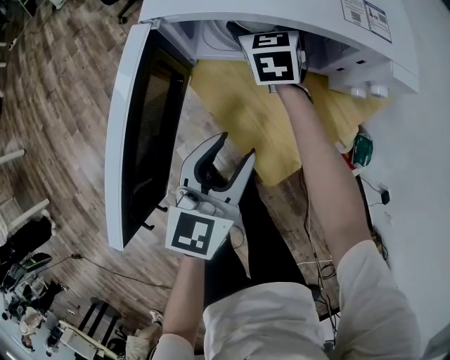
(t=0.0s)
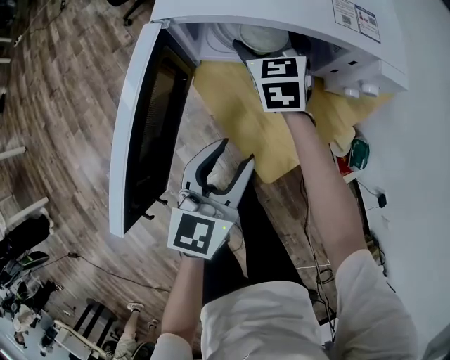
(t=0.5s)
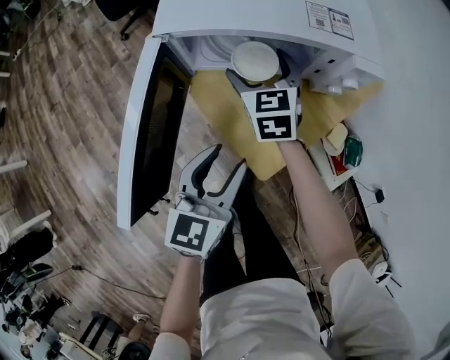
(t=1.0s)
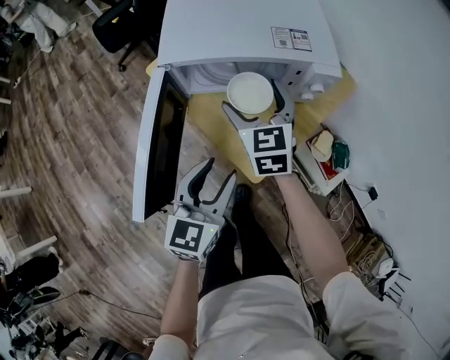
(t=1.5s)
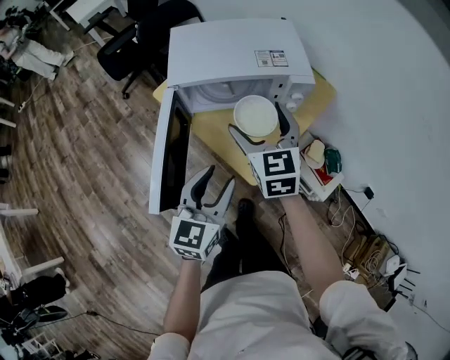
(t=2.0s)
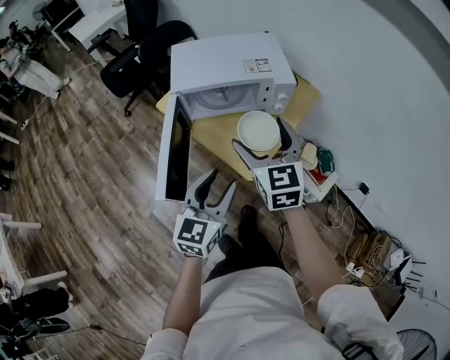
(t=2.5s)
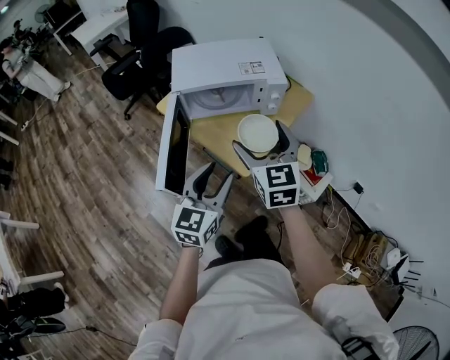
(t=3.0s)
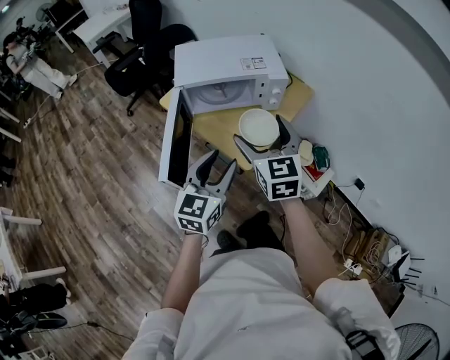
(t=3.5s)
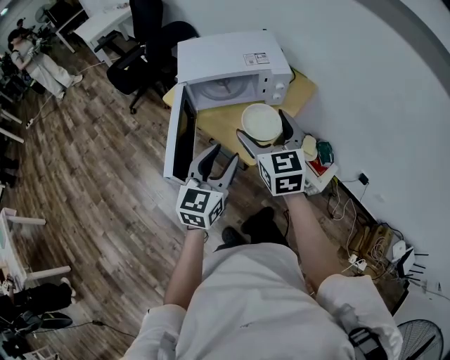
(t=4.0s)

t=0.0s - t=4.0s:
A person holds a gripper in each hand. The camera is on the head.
t=0.0s - t=2.0s: The right gripper heads backward and upward, covering about 35 cm. Meanwhile the left gripper shifts about 20 cm upward and backward.
t=2.0s - t=4.0s: The right gripper goes approximately 15 cm backward and upward, while the left gripper heads backward and upward, covering about 10 cm.

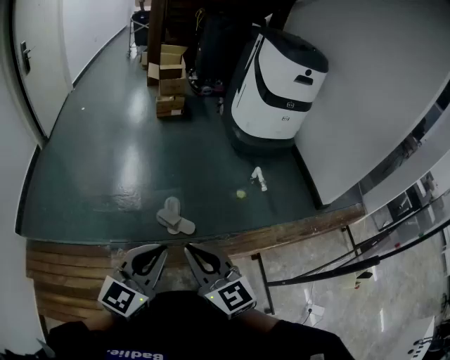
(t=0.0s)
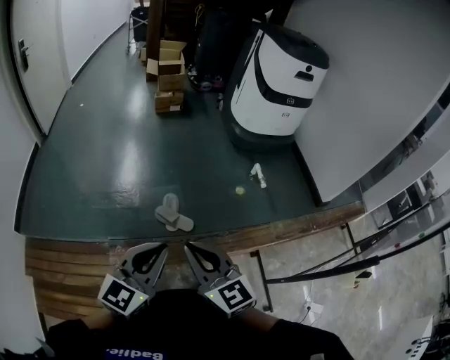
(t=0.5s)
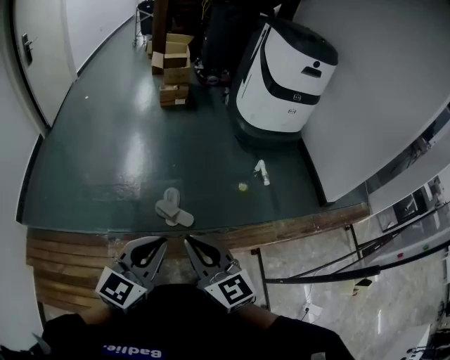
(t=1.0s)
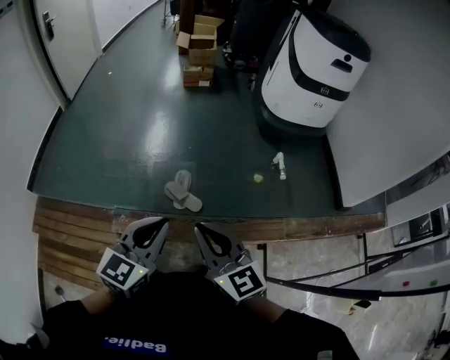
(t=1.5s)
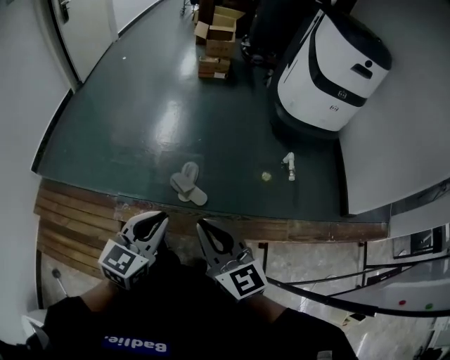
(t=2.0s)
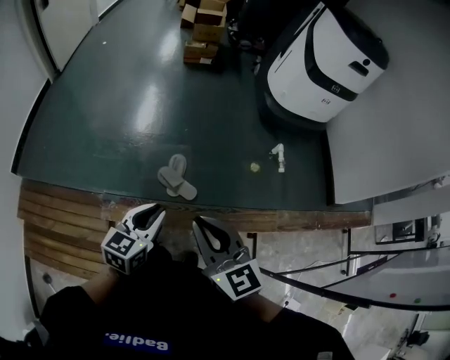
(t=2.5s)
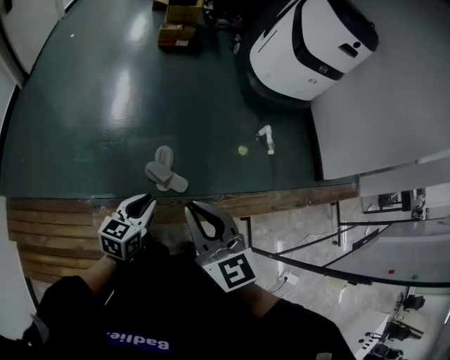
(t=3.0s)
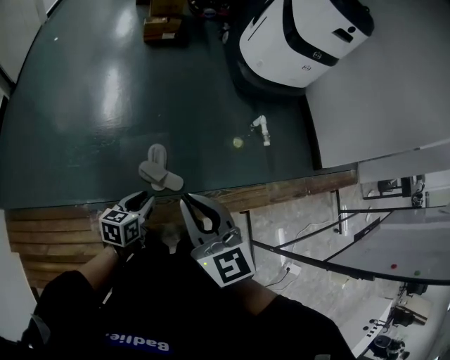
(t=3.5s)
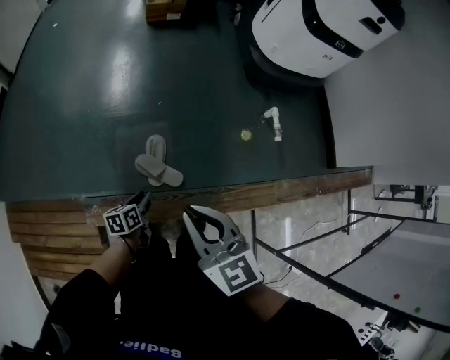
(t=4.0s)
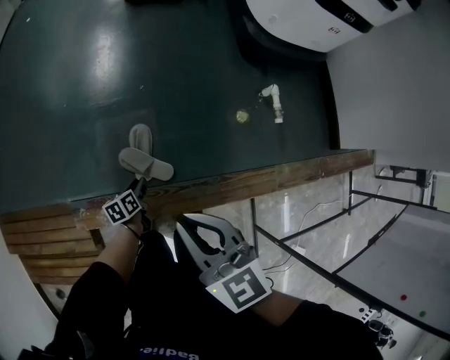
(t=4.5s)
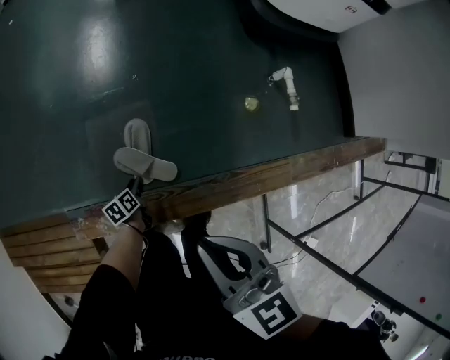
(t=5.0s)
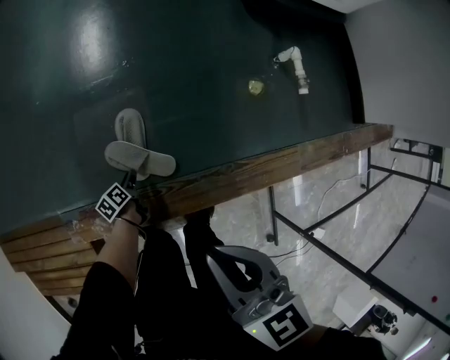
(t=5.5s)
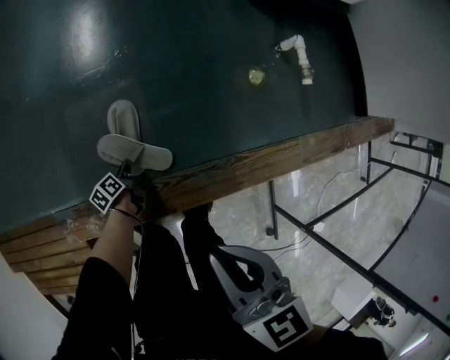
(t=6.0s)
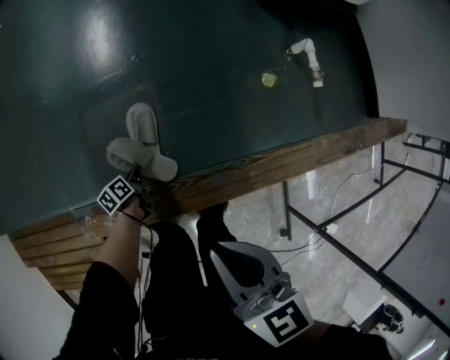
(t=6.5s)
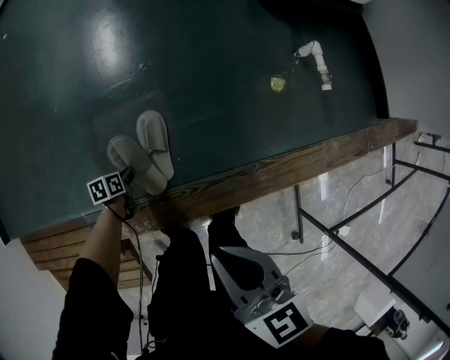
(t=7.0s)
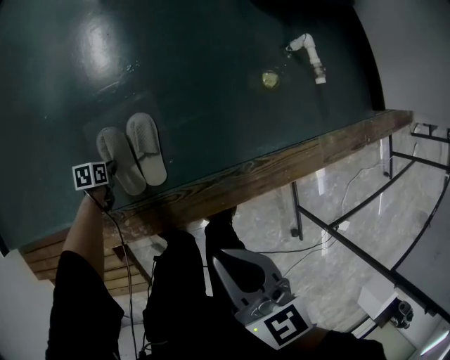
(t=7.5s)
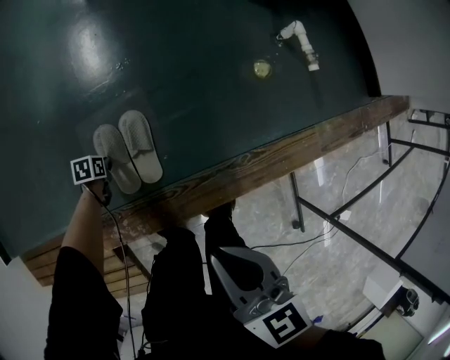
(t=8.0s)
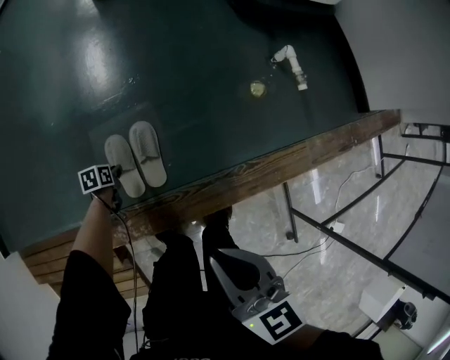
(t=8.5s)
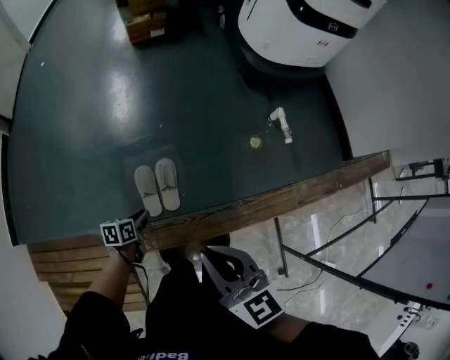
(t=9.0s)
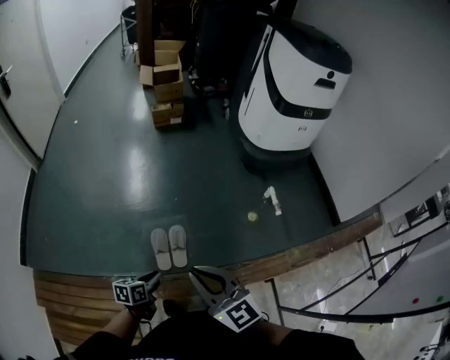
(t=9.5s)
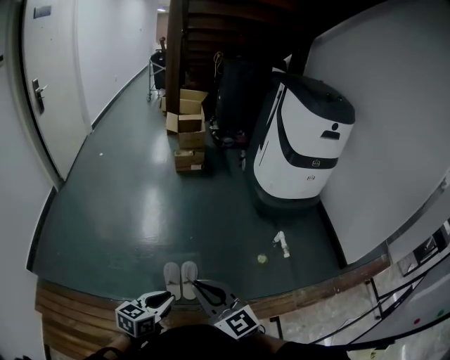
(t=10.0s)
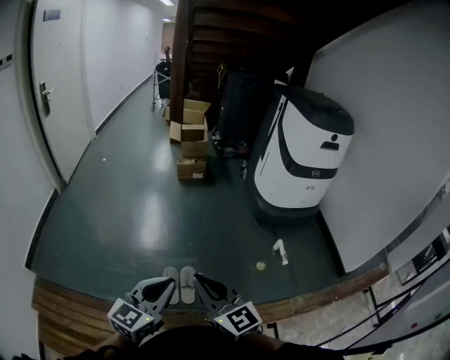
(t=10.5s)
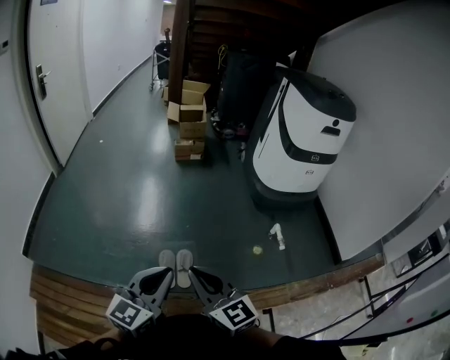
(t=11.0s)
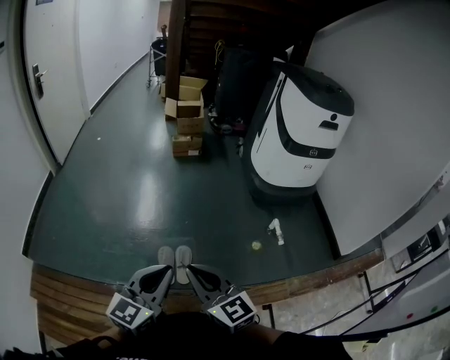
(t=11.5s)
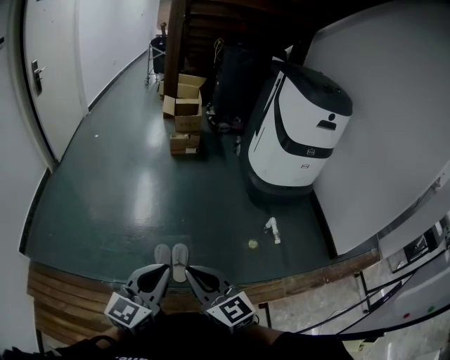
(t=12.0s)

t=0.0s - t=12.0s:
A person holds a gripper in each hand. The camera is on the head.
t=0.0s - t=2.0s: The left gripper shifts about 15 cm downward, to the right and forward, and turns by about 20 degrees. Meanwhile the right gripper shifts about 10 cm to the right and forward.
t=2.0s - t=4.0s: The right gripper shifts approximately 25 cm forward and downward; the left gripper heads downward and forward, covering roughly 40 cm, rotates around the line of its fingers by some 40 degrees, counterclockwise from behind, and opens its fingers.
t=4.0s - t=6.0s: The left gripper travels downward by about 35 cm, and rotates roughly 30 degrees; the right gripper goes roughly 20 cm downward, and swivels roughly 20 degrees.
t=6.0s - t=8.0s: The left gripper moves to the left and forward, roughly 10 cm, and rotates around the line of its fingers by about 50 degrees, clockwise from behind.
t=8.0s - t=10.0s: The right gripper travels upward by roughly 40 cm, and changes its angle by about 50 degrees. Meanwhile the left gripper goes roughly 70 cm upward, and tips its fingers upward by some 50 degrees.
t=10.0s - t=12.0s: The left gripper goes some 15 cm upward, and turns by approximately 30 degrees.

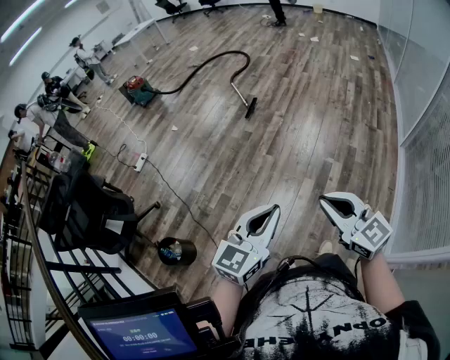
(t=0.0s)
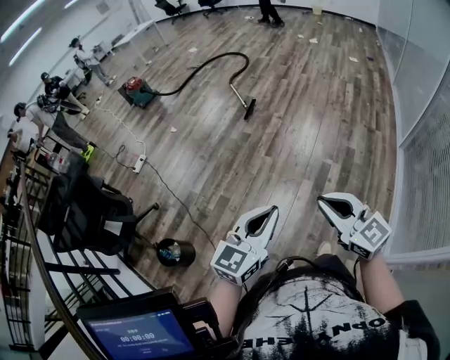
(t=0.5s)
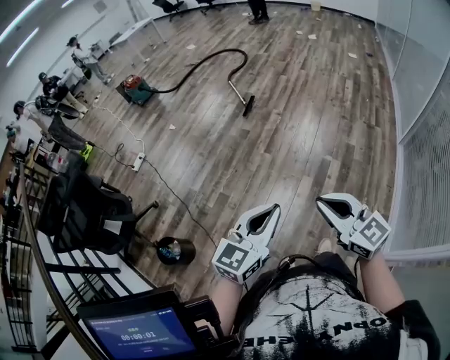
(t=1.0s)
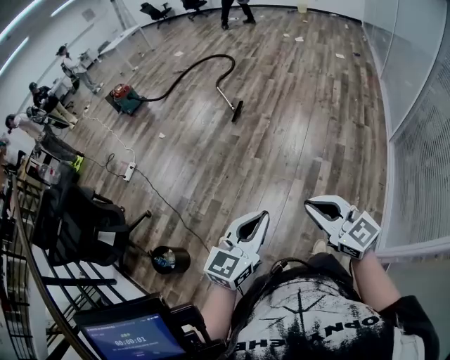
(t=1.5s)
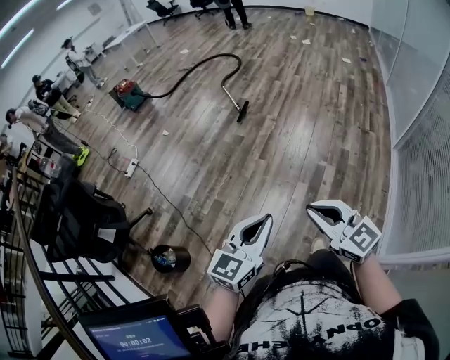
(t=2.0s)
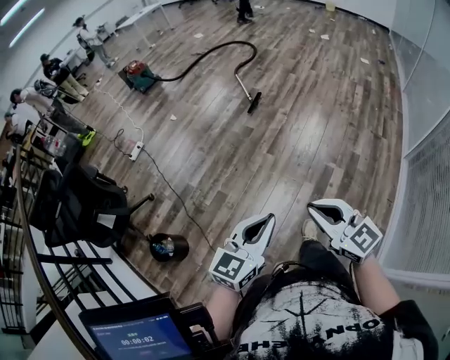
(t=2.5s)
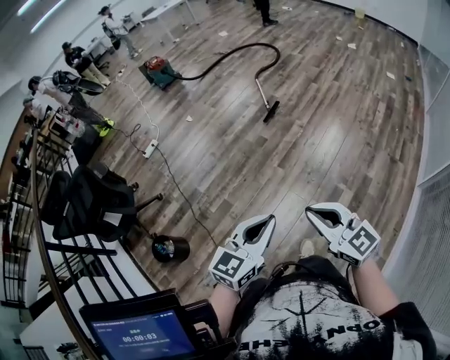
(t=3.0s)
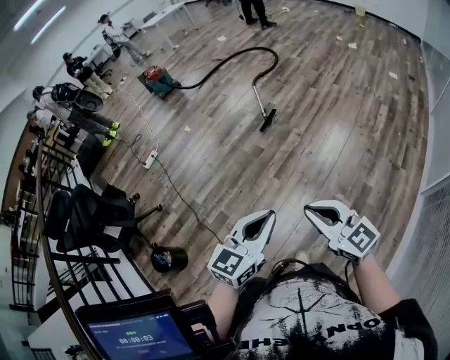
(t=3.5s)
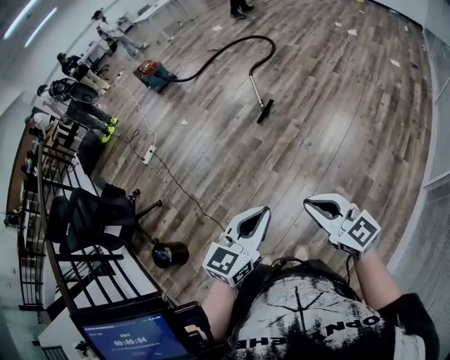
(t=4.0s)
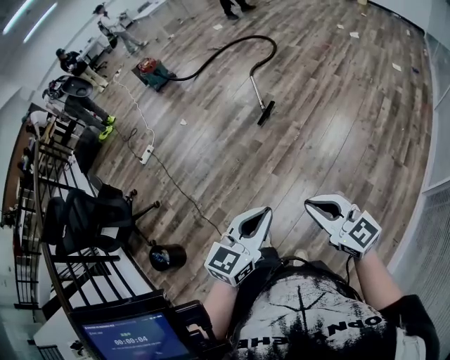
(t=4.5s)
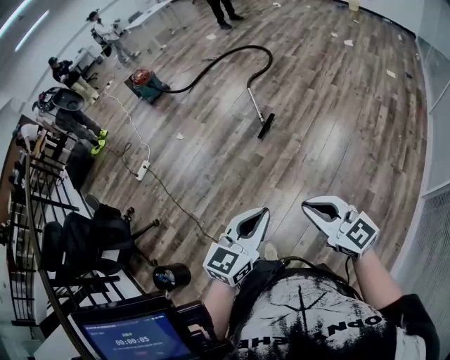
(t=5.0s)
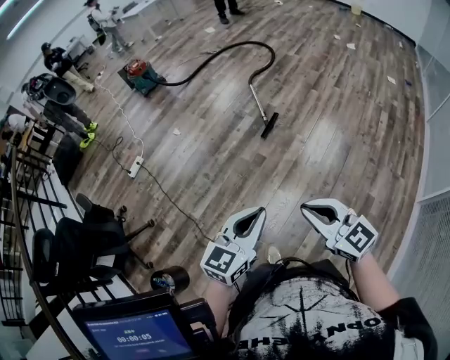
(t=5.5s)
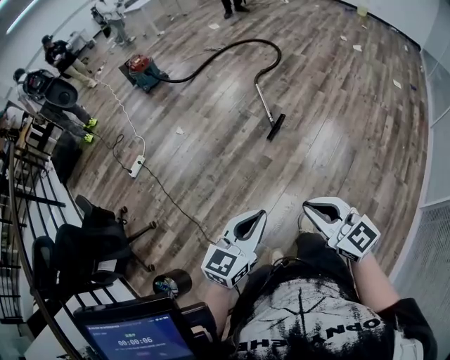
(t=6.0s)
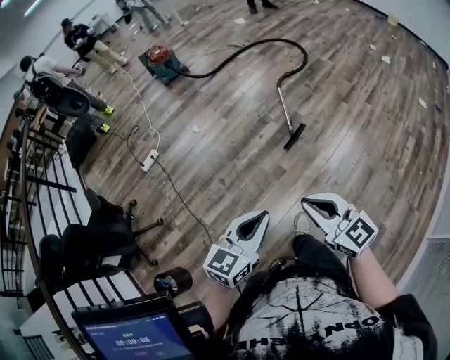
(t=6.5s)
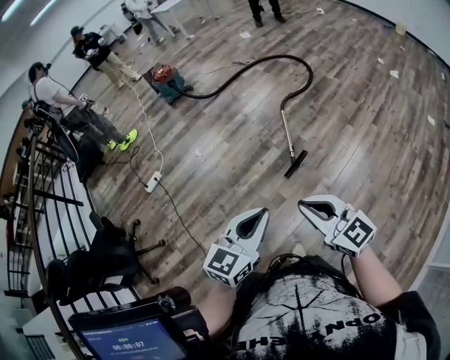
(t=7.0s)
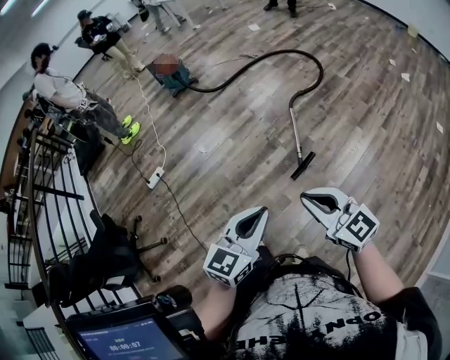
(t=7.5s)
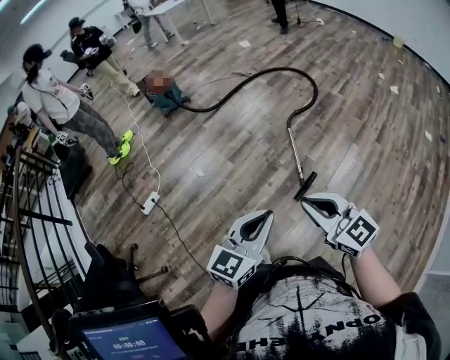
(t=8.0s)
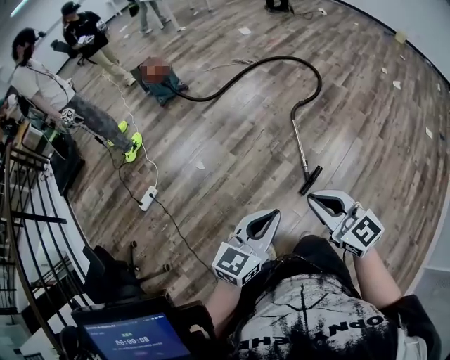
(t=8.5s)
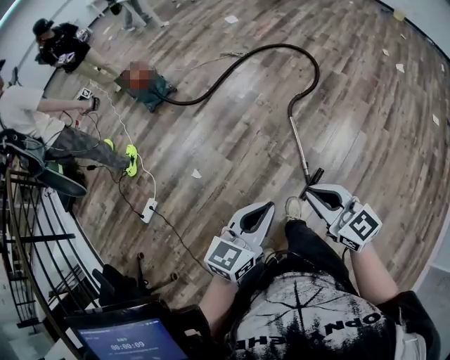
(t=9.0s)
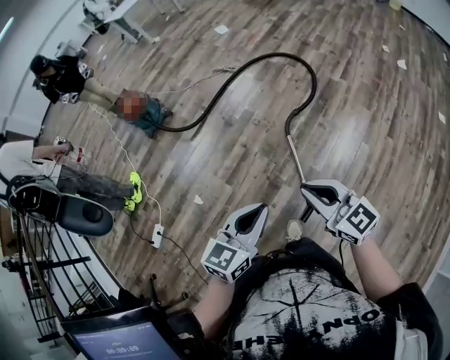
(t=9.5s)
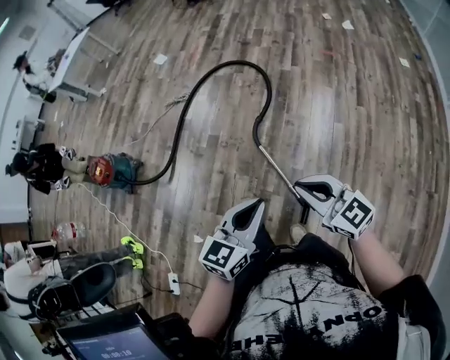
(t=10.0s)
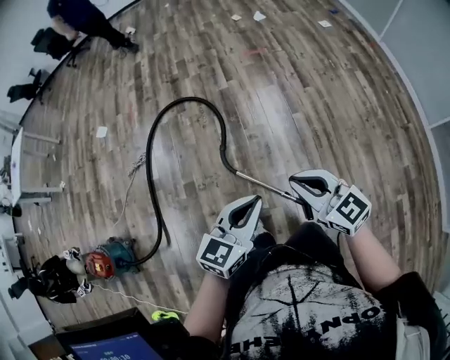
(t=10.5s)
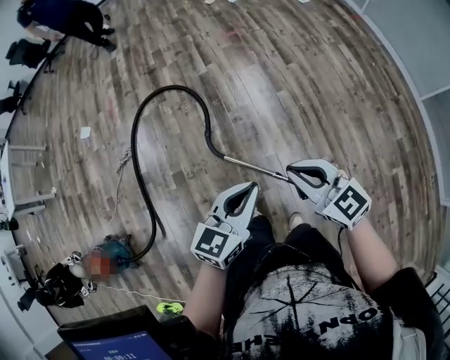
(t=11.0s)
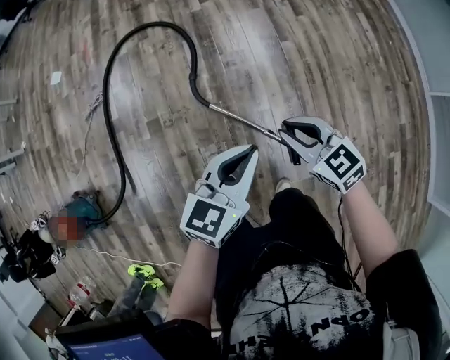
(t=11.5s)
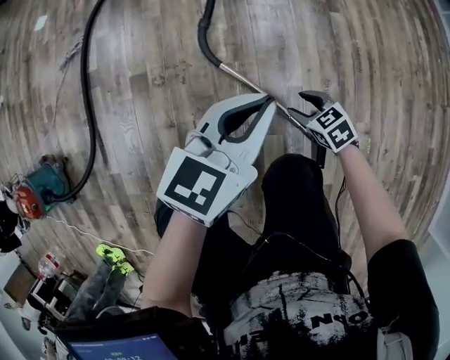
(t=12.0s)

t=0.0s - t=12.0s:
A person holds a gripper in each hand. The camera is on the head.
t=0.0s - t=2.0s: The grippers stay close to where they were, moving slightly.
t=2.0s - t=4.0s: Both grippers move forward and to the right, about 35 cm.
t=4.0s - t=6.0s: Both grippers travel together forward and to the left, some 35 cm.
t=6.0s - t=8.0s: Both grippers are carried forward, about 50 cm.
t=8.0s - t=10.0s: The pair of grippers is taken forward, roughly 50 cm. The right gripper turns by some 30 degrees, while the left gripper rotates roughly 30 degrees.
t=10.0s - t=12.0s: The right gripper is displaced downward by approximately 60 cm, tilts its fingers about 40 degrees downward, and opens its fingers, while the left gripper goes approximately 40 cm downward, and rotates about 30 degrees.
